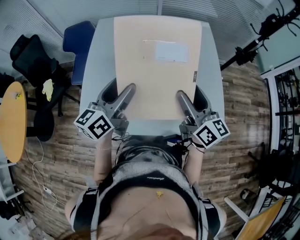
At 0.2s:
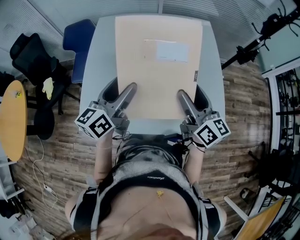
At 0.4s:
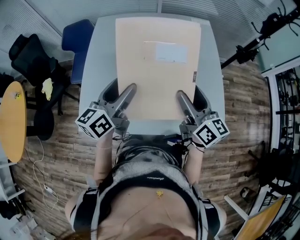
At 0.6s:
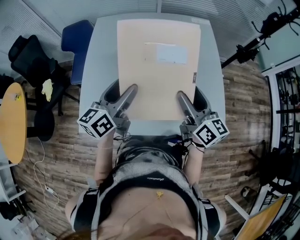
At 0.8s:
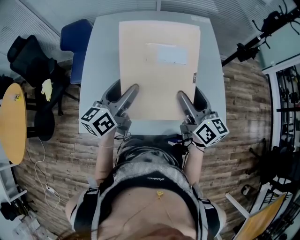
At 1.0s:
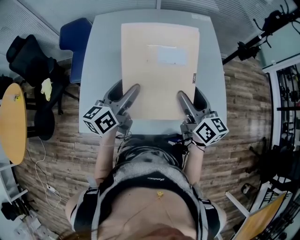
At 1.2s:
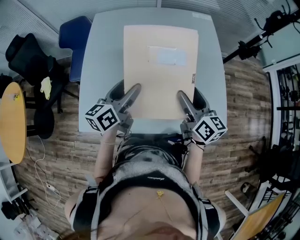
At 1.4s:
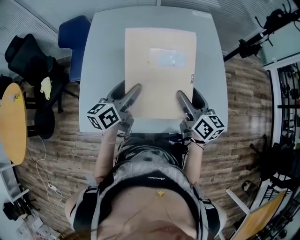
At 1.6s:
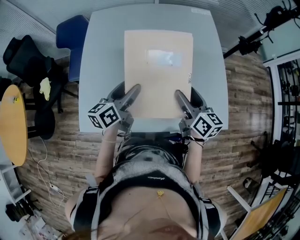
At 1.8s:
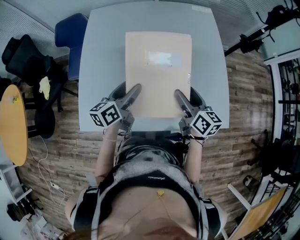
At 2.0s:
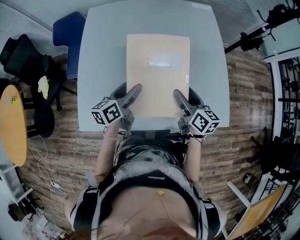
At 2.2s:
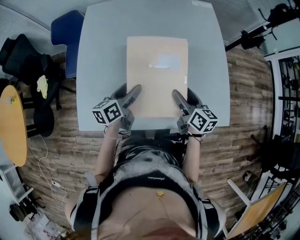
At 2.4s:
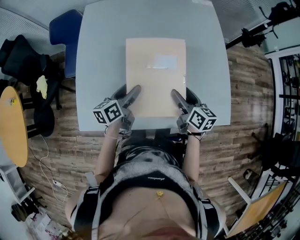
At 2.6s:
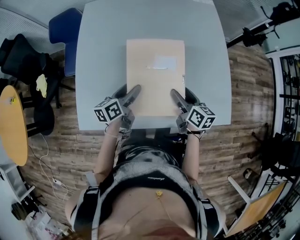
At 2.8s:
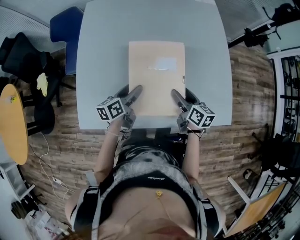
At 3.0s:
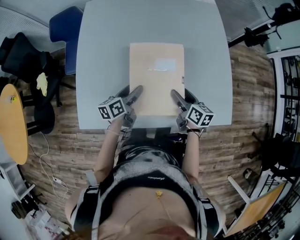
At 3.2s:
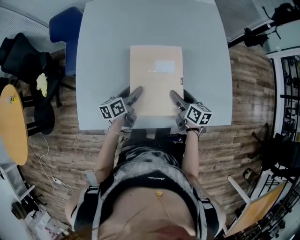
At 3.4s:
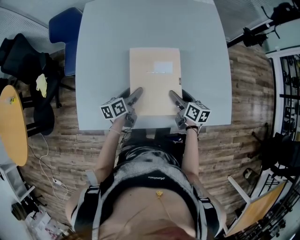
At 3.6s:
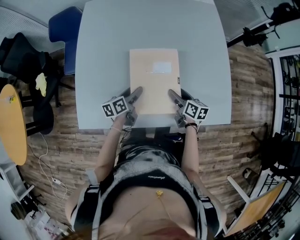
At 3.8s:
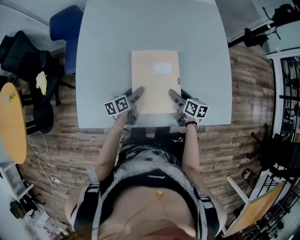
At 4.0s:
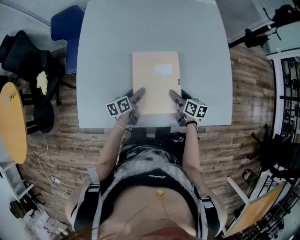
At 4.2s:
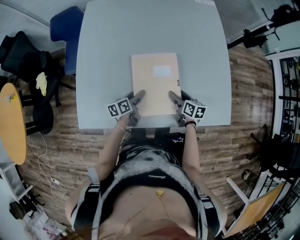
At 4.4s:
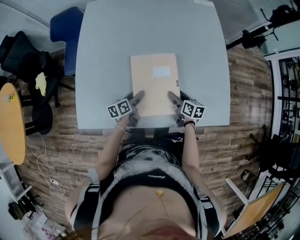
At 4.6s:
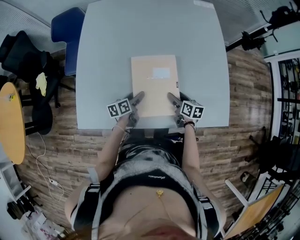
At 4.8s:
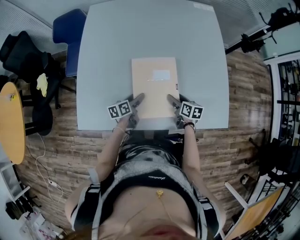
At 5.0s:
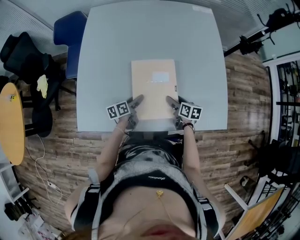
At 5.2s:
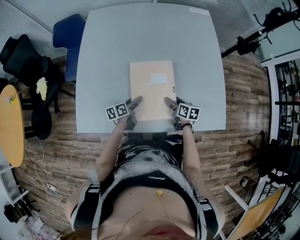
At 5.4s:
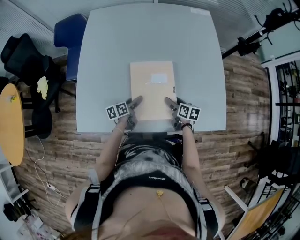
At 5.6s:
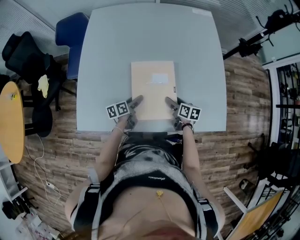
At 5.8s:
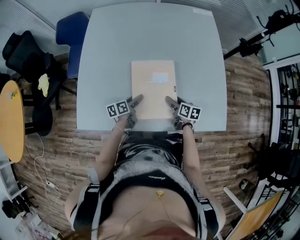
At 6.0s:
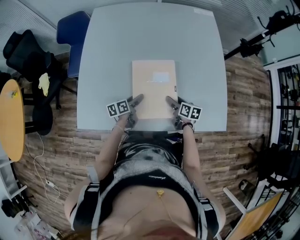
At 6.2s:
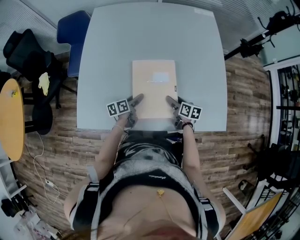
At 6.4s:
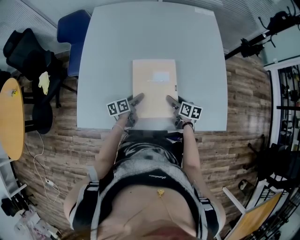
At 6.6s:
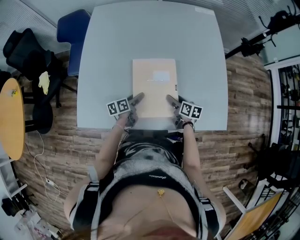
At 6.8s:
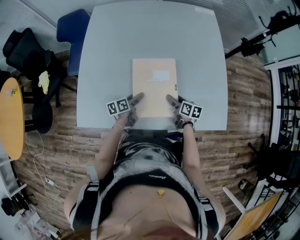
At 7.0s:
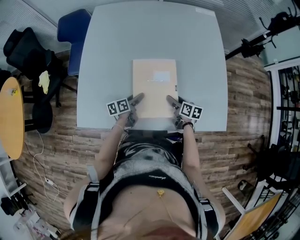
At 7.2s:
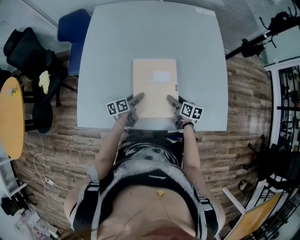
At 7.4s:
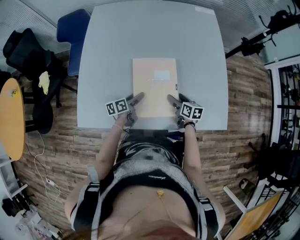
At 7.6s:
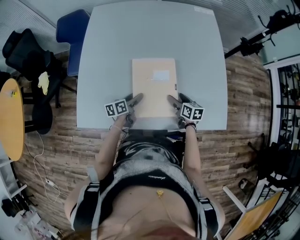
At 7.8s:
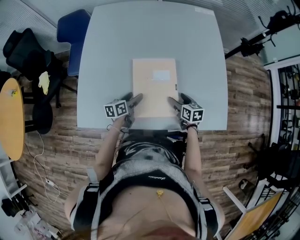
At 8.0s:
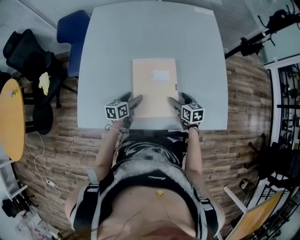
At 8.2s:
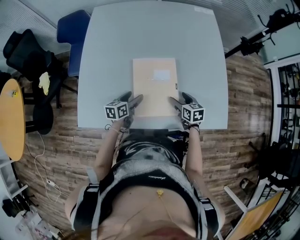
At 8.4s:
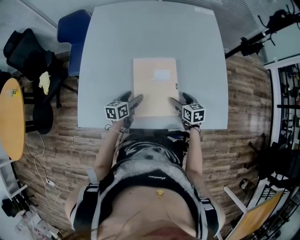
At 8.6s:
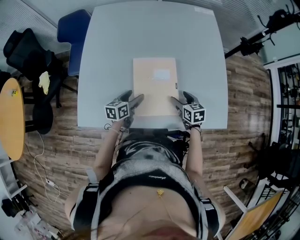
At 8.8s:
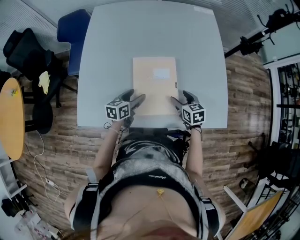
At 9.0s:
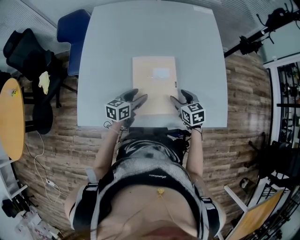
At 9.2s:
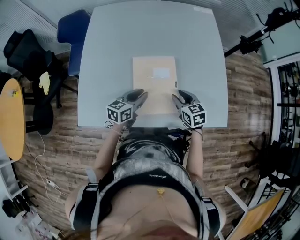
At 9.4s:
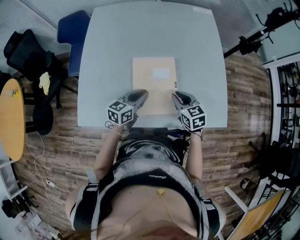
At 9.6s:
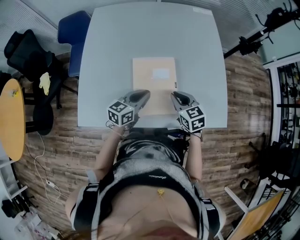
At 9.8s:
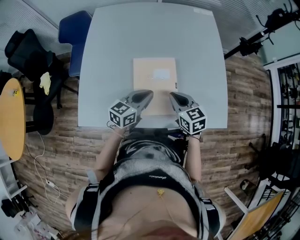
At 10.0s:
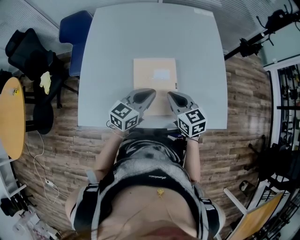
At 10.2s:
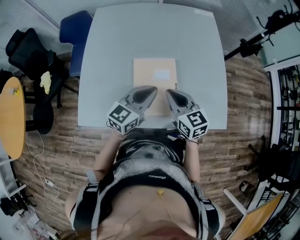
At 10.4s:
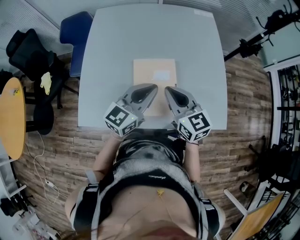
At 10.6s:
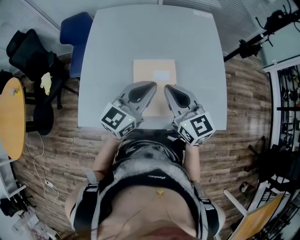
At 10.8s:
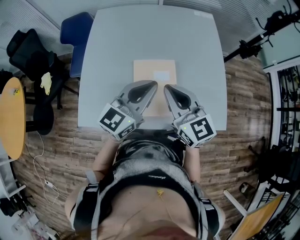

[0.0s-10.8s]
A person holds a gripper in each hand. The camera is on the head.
0.0s to 1.6s: Both grippers travel together downward, approximately 10 cm.
1.6s to 3.0s: Both grippers move downward, roughly 15 cm.
3.0s to 4.6s: Both grippers travel together downward, roughly 10 cm.
4.6s to 6.2s: Both grippers stay put.
6.2s to 7.8s: The grippers stay close to where they were, moving slightly.
7.8s to 9.2s: Both grippers travel together upward, some 10 cm. The left gripper rotates some 20 degrees, and closes its fingers. The right gripper closes up.
9.2s to 10.8s: Both grippers move upward, about 25 cm. The left gripper turns by roughly 30 degrees. The right gripper angles its fingers upward, by approximately 30 degrees, and closes.

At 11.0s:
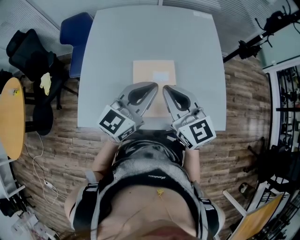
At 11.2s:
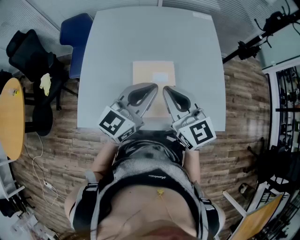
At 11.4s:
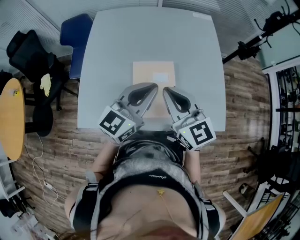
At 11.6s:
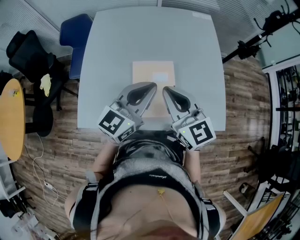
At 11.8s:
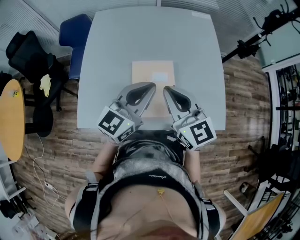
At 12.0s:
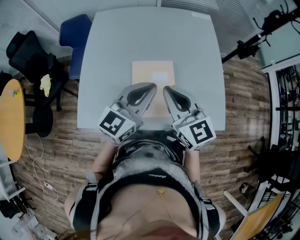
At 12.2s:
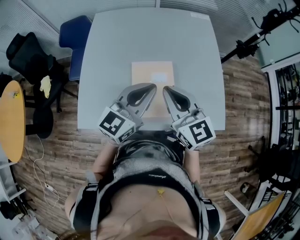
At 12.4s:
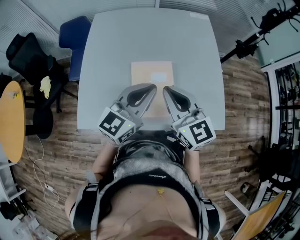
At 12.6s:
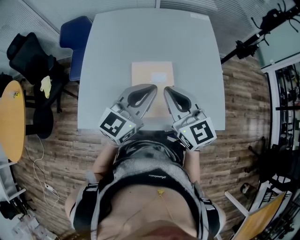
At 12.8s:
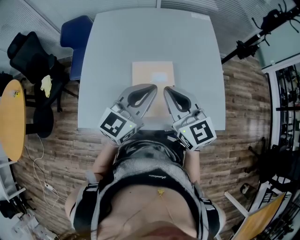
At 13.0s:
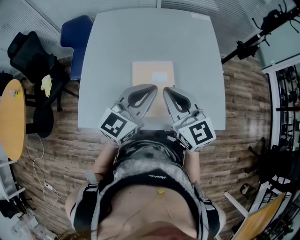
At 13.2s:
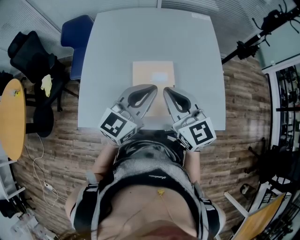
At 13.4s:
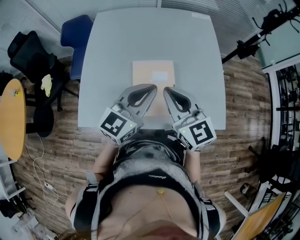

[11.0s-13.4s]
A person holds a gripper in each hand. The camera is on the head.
11.0s to 12.2s: The two grippers keep their place.
12.2s to 13.4s: Both grippers stay about where they are.

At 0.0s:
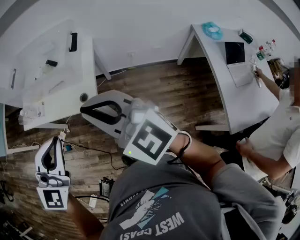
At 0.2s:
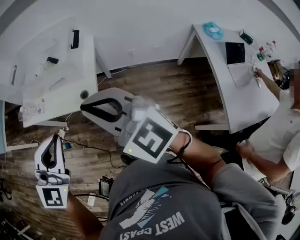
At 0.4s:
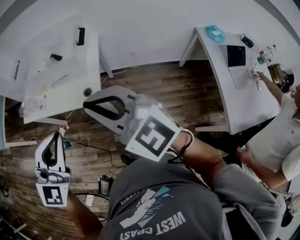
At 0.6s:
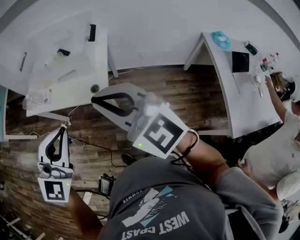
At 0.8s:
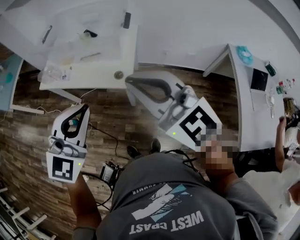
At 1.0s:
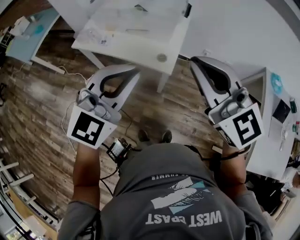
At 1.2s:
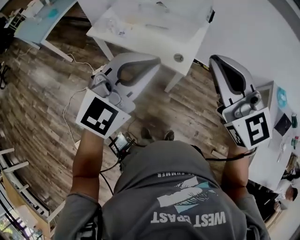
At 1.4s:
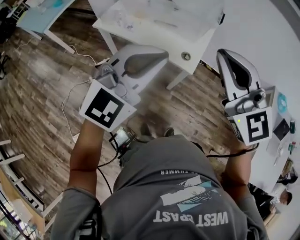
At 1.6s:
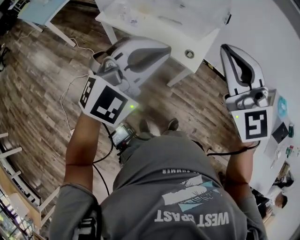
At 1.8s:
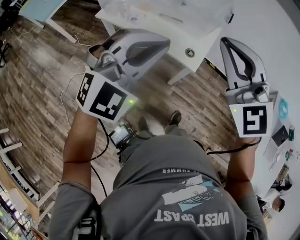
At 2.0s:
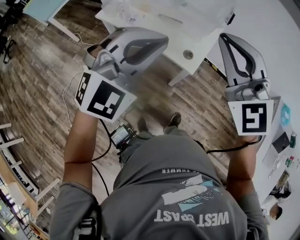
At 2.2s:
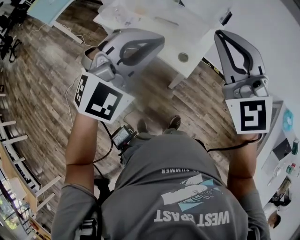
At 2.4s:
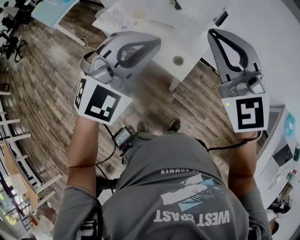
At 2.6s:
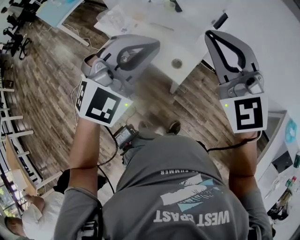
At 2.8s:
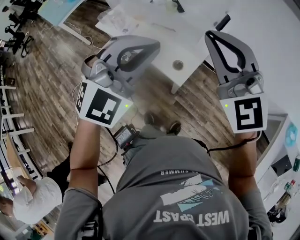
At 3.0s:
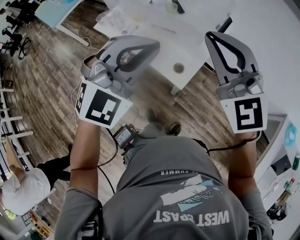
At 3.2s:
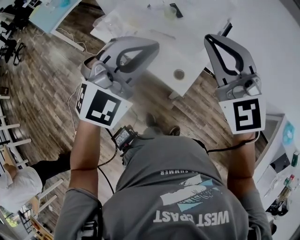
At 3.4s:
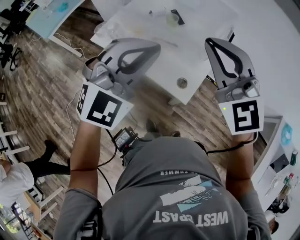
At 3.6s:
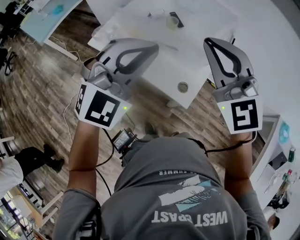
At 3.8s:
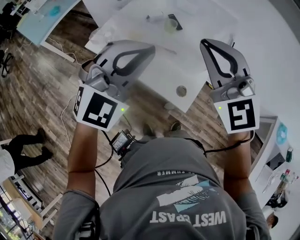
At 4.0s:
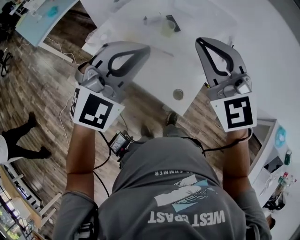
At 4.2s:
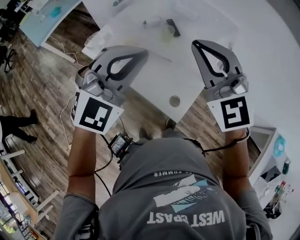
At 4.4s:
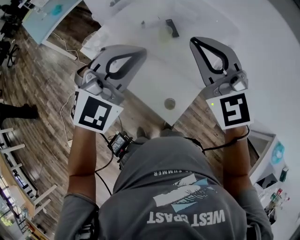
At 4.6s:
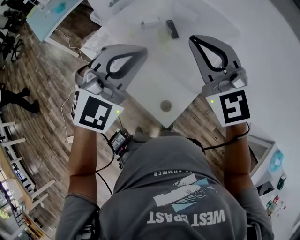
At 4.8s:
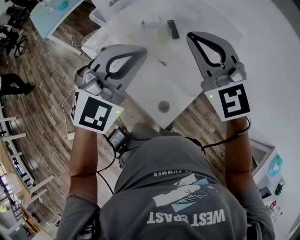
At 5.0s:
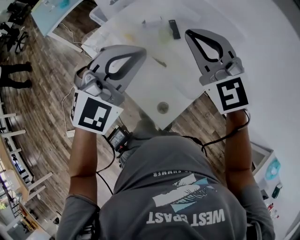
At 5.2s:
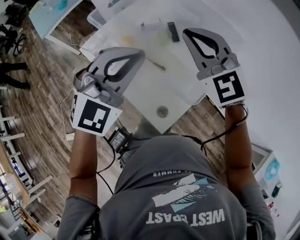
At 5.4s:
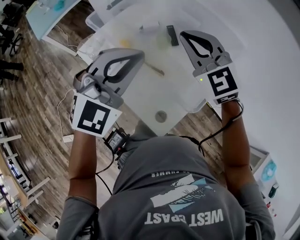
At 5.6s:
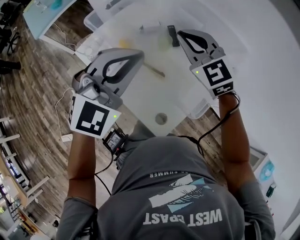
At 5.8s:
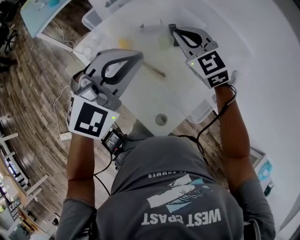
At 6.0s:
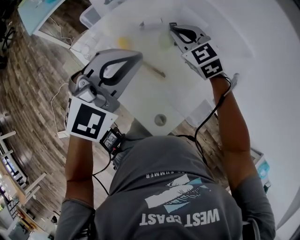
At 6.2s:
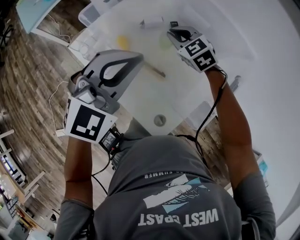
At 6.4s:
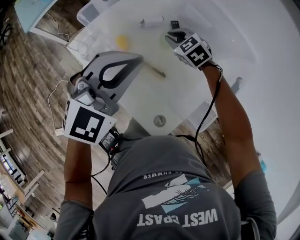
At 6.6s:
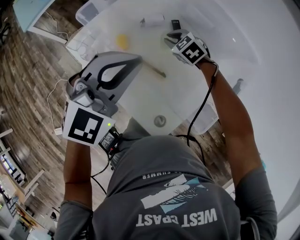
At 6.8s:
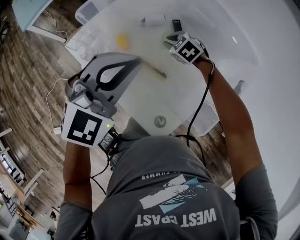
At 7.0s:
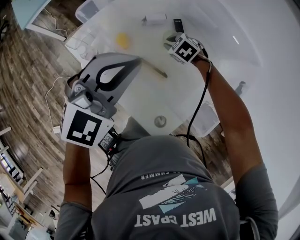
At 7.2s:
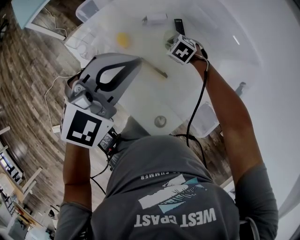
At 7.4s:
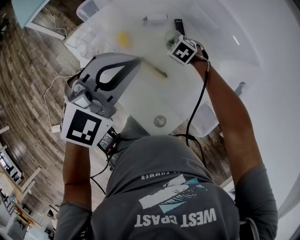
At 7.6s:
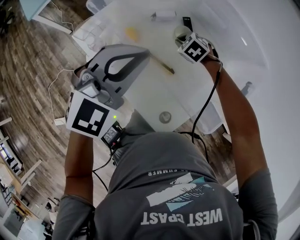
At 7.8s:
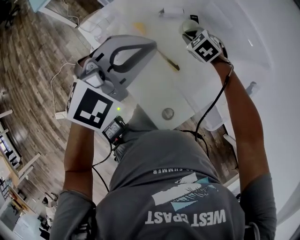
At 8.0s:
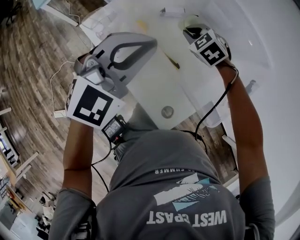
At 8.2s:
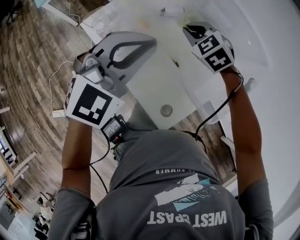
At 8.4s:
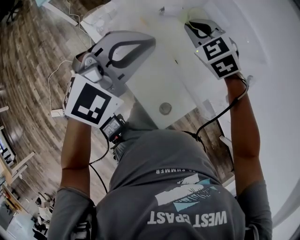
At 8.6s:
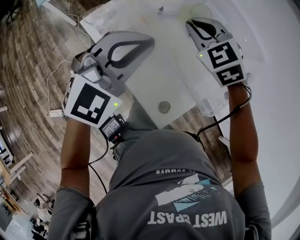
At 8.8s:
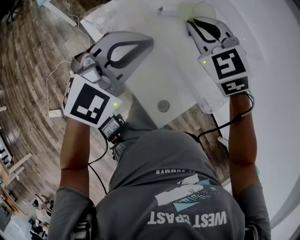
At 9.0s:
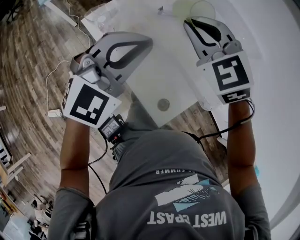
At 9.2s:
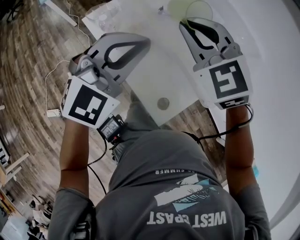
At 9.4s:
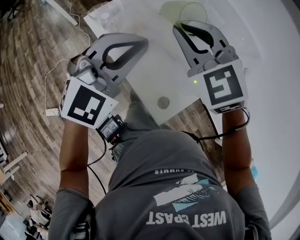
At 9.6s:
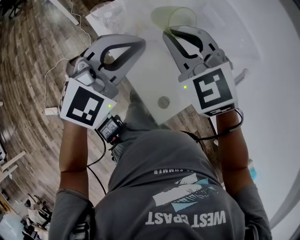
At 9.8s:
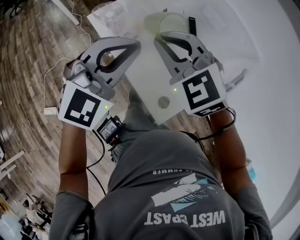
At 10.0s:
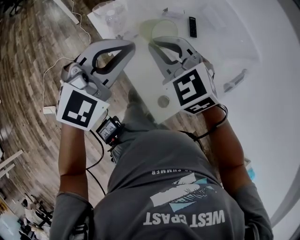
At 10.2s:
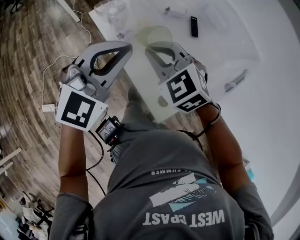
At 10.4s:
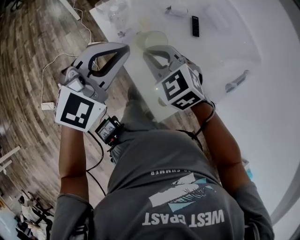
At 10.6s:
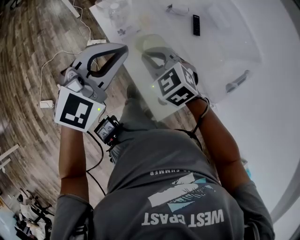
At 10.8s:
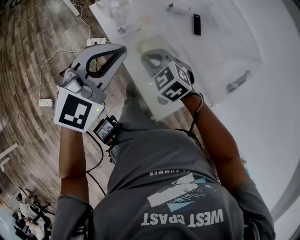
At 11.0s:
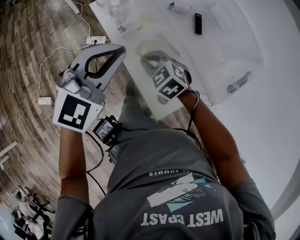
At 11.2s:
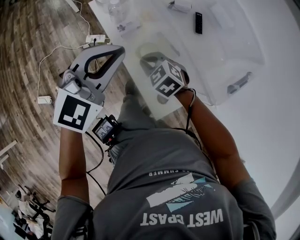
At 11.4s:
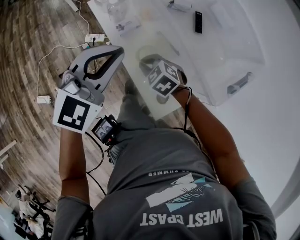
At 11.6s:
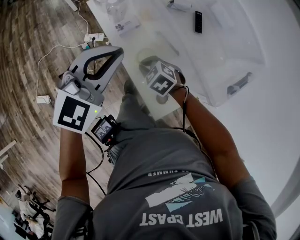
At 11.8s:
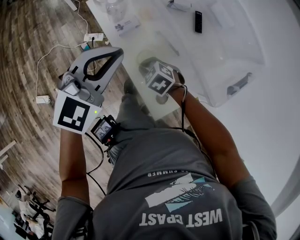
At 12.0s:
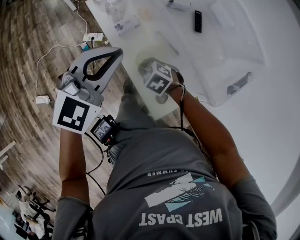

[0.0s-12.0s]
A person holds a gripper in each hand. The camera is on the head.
0.0s to 1.6s: The two grippers go some 20 cm to the left.
1.6s to 3.0s: The right gripper heads forward and to the right, covering some 20 cm, while the left gripper shifts approximately 20 cm to the right and forward.
3.0s to 4.4s: Both grippers move forward, approximately 20 cm.
4.4s to 6.0s: The right gripper travels forward and downward by about 30 cm, and turns by roughly 30 degrees. Meanwhile the left gripper moves forward, approximately 10 cm.
6.0s to 7.6s: The right gripper shifts roughly 20 cm downward, and tips its fingers downward by roughly 40 degrees.
7.6s to 9.0s: The right gripper travels upward and backward by roughly 30 cm, and tips its fingers upward by approximately 40 degrees. Meanwhile the left gripper moves backward, about 5 cm.
9.0s to 10.4s: The right gripper moves backward, downward and to the left, about 20 cm. The left gripper is displaced backward and to the left by roughly 10 cm.
10.4s to 12.0s: The right gripper goes some 20 cm downward, and rotates about 30 degrees.
